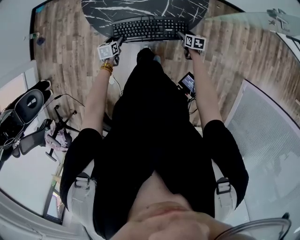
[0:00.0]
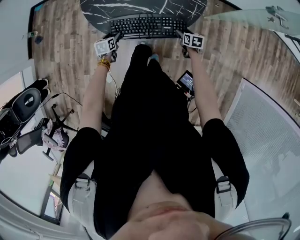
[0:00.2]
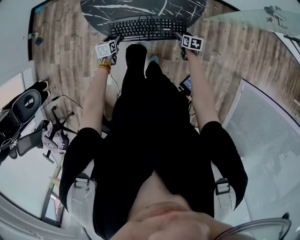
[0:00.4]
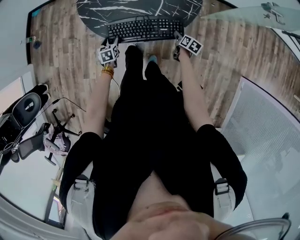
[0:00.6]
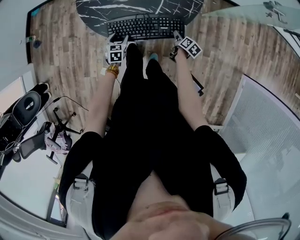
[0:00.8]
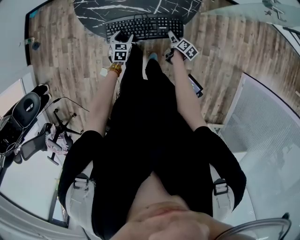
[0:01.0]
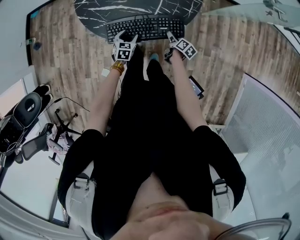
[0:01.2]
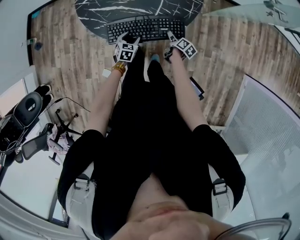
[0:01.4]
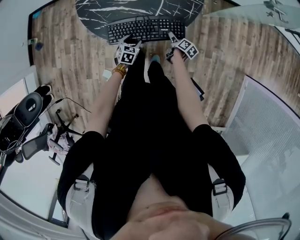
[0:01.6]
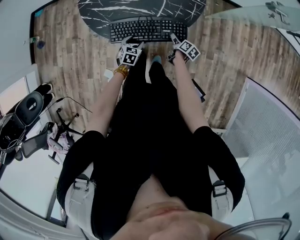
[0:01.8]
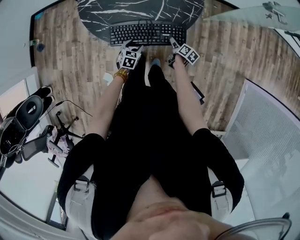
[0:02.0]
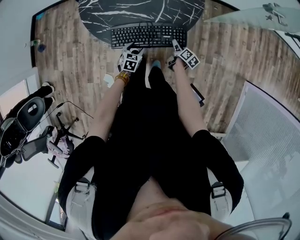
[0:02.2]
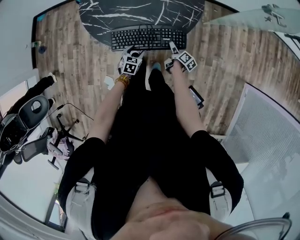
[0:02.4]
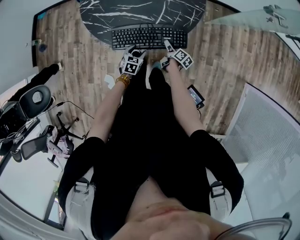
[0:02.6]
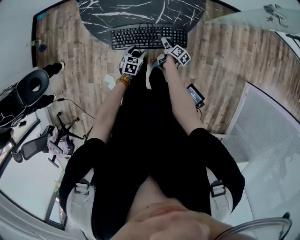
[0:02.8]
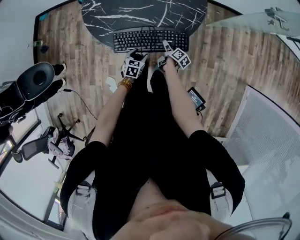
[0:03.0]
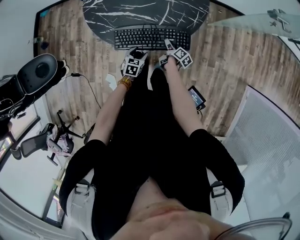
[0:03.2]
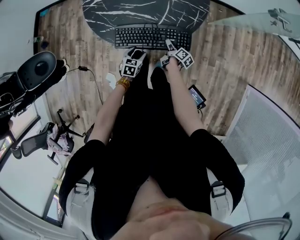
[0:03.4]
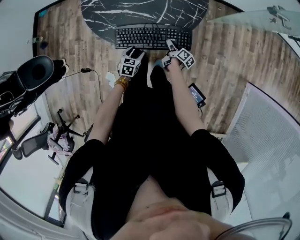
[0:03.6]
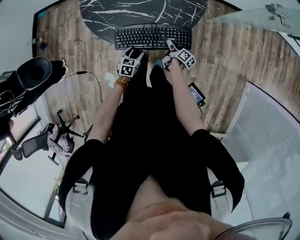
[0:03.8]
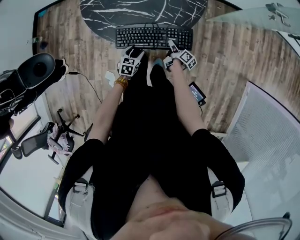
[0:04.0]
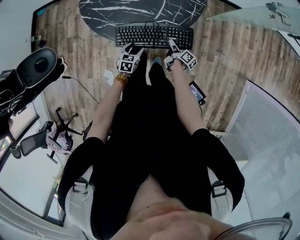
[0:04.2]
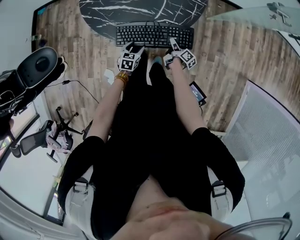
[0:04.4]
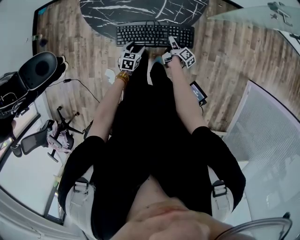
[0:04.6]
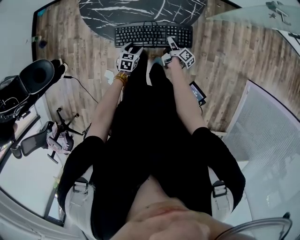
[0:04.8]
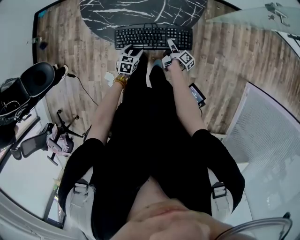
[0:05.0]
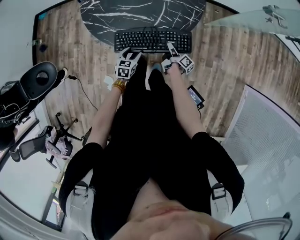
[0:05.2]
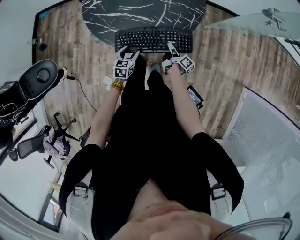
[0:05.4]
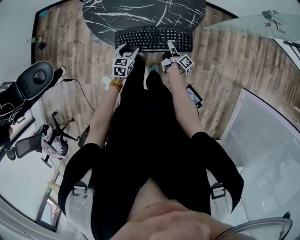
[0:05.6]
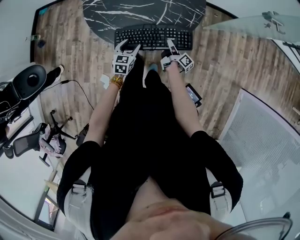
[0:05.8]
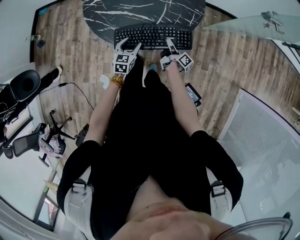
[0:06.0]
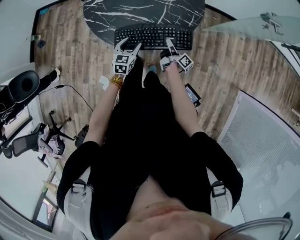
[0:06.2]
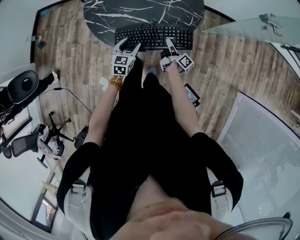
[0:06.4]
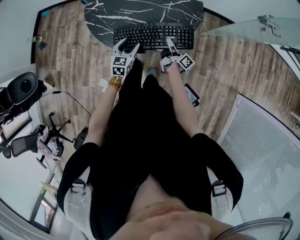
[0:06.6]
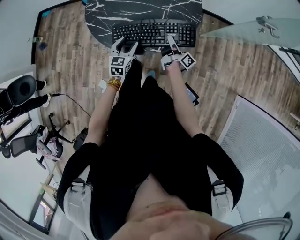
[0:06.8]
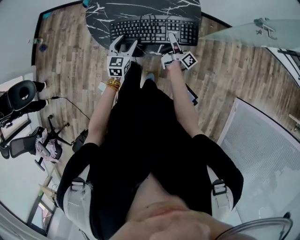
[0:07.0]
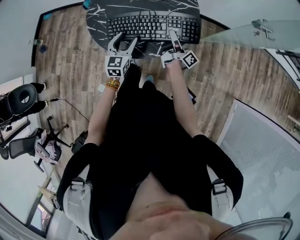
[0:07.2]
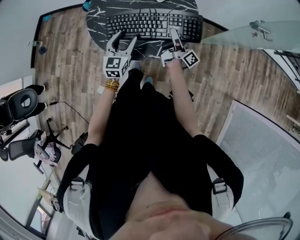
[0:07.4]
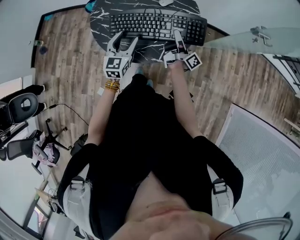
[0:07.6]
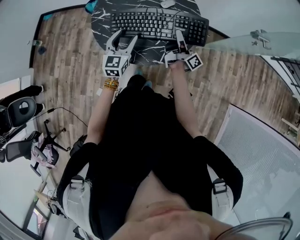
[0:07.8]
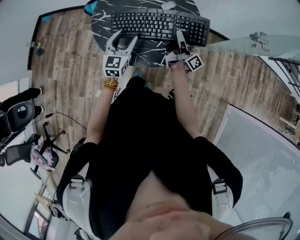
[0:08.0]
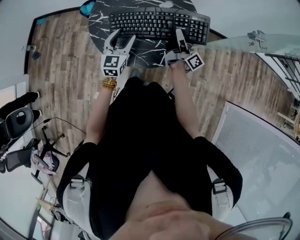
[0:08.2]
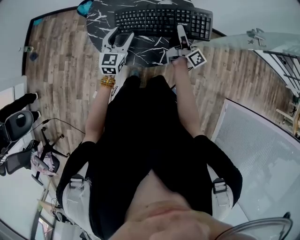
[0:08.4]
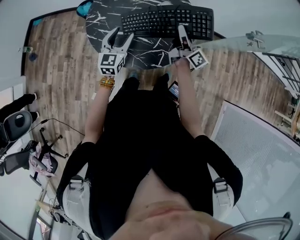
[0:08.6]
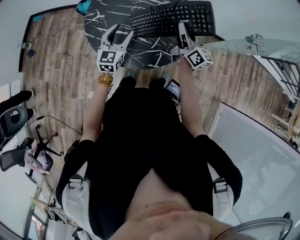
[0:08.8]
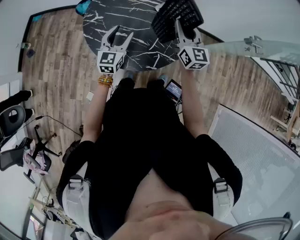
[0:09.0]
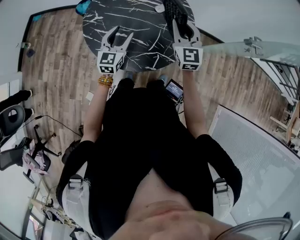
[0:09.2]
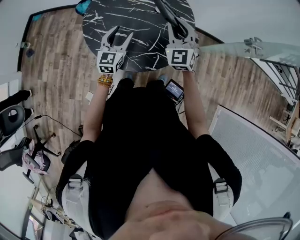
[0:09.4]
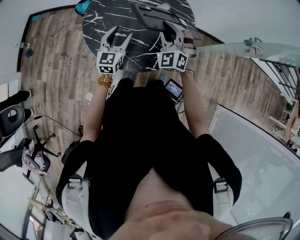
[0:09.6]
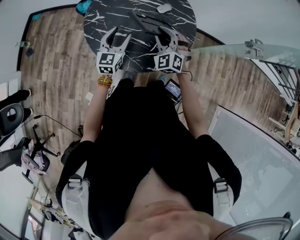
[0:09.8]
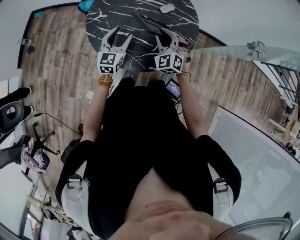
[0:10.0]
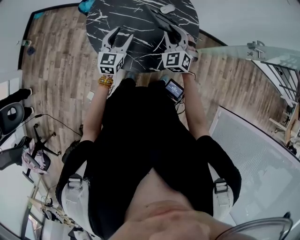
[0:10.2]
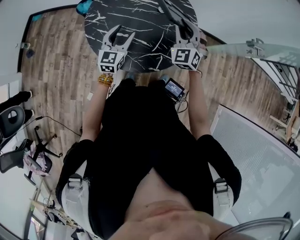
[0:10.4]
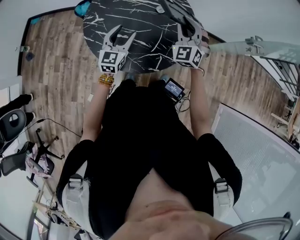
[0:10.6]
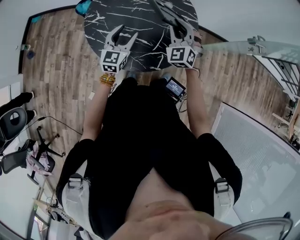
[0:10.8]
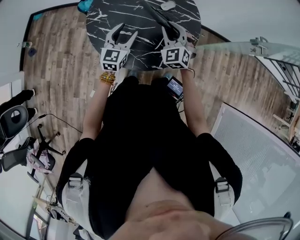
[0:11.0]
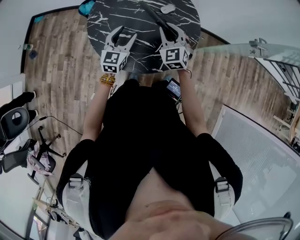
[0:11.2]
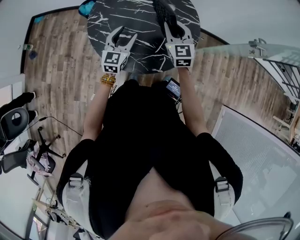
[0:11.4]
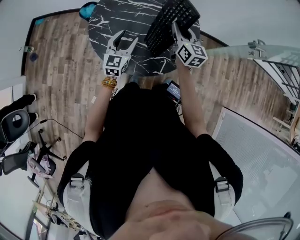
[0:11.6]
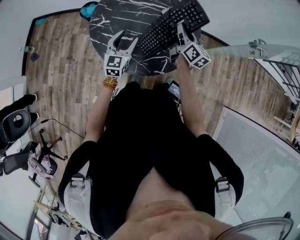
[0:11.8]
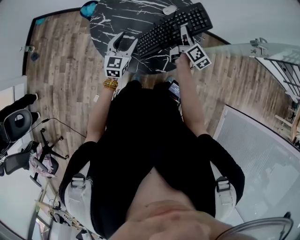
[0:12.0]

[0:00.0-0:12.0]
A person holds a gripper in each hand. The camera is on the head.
0:00.0 to 0:01.6: The left gripper heads to the right, covering about 15 cm, and rotates some 30 degrees. Meanwhile the right gripper goes some 5 cm backward, and rolls clockwise, seen from behind, by about 50 degrees.
0:01.6 to 0:03.0: The right gripper heads to the left, covering approximately 5 cm.
0:03.0 to 0:04.4: The right gripper closes its fingers.
0:04.4 to 0:06.0: Both grippers move upward, roughly 10 cm. The right gripper closes its fingers.
0:06.0 to 0:07.6: The right gripper is displaced upward and forward by about 25 cm, and rotates about 30 degrees, while the left gripper shifts approximately 20 cm upward, and turns by roughly 20 degrees.
0:07.6 to 0:09.0: The left gripper is displaced forward by approximately 5 cm. Meanwhile the right gripper travels upward and forward by some 15 cm, and rolls counterclockwise, seen from behind, by roughly 70 degrees.
0:09.0 to 0:10.4: The right gripper goes downward and returns, roughly 10 cm each way, and rotates around the line of its fingers by approximately 50 degrees, counterclockwise from behind.
0:10.4 to 0:12.0: The right gripper shifts roughly 5 cm downward, and twists about 100 degrees clockwise, seen from behind.

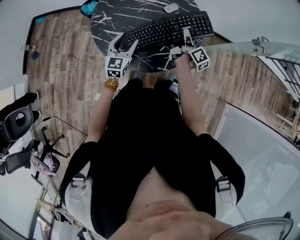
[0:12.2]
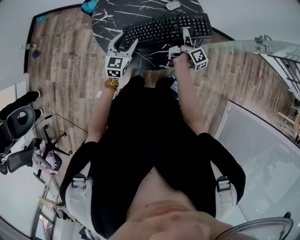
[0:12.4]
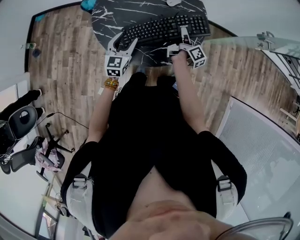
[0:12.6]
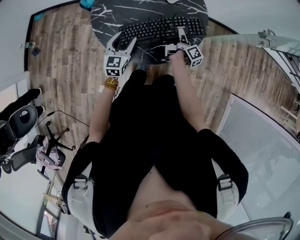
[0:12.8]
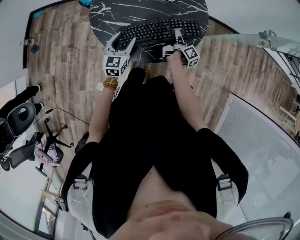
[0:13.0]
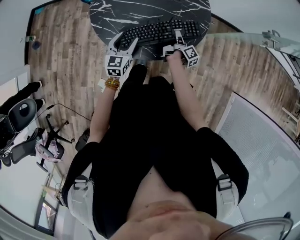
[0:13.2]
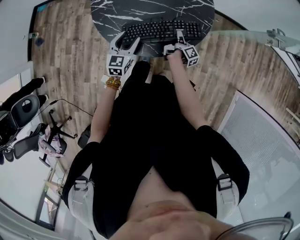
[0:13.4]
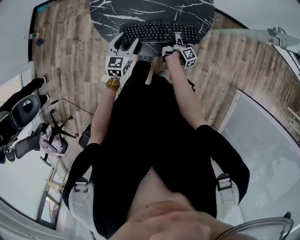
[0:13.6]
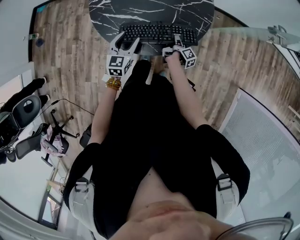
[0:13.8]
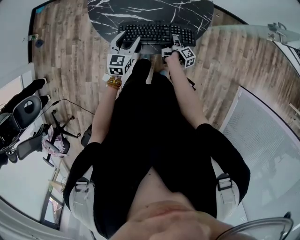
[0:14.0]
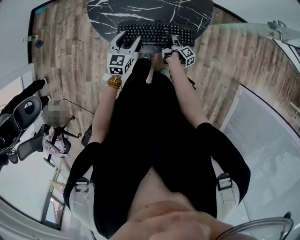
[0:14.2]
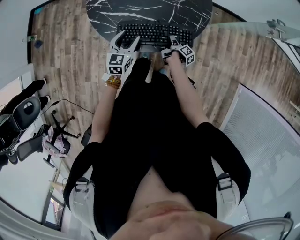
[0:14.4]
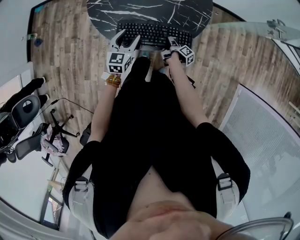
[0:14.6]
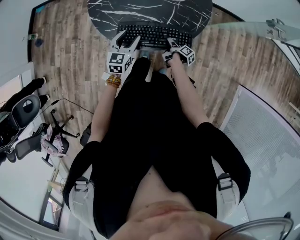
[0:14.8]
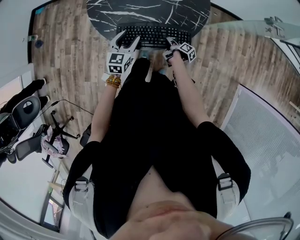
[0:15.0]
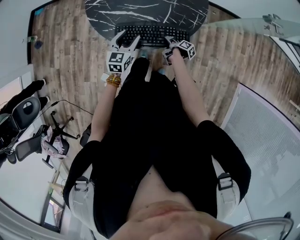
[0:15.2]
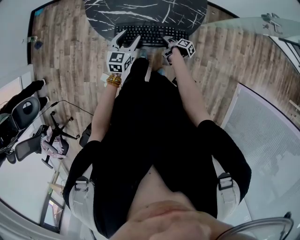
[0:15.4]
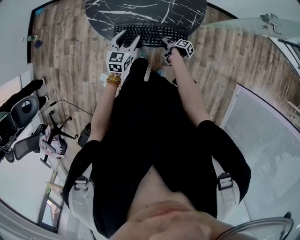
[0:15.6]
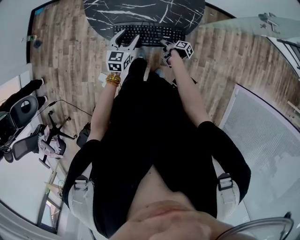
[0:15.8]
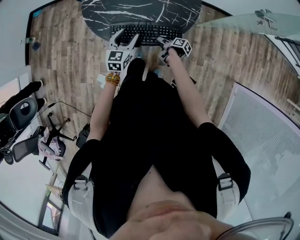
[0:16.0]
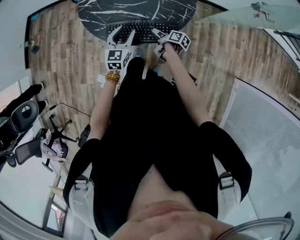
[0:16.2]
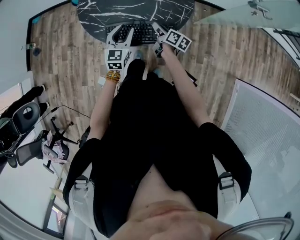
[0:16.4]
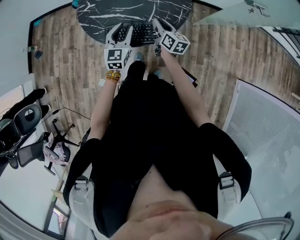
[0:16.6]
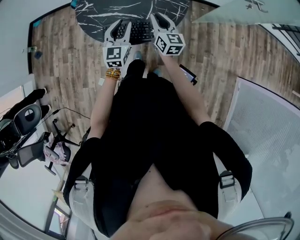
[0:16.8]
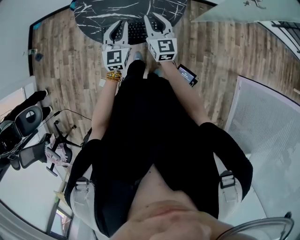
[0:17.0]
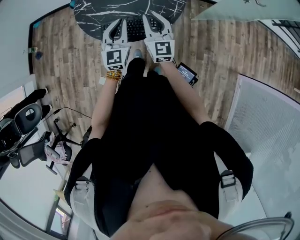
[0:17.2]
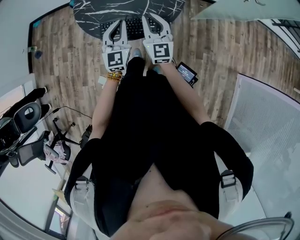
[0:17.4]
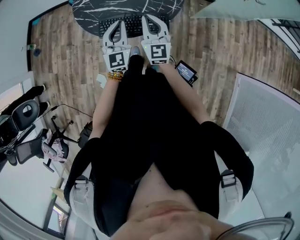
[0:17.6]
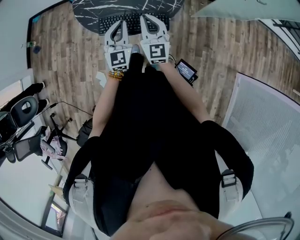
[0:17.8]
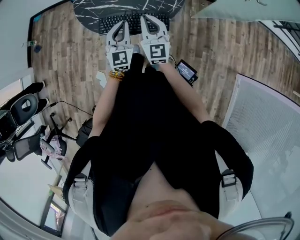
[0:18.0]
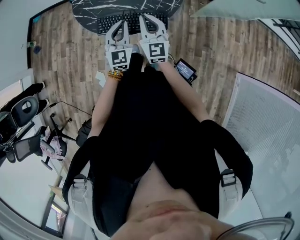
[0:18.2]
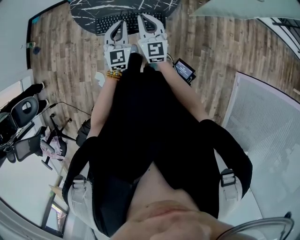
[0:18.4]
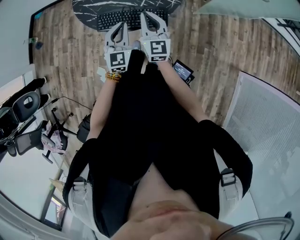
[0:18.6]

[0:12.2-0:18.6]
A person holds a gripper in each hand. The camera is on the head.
0:12.2 to 0:13.8: The right gripper goes some 25 cm downward and backward, and changes its angle by roughly 30 degrees; the left gripper shifts approximately 5 cm downward and backward.
0:13.8 to 0:15.4: The right gripper travels backward and downward by some 10 cm, turns by roughly 30 degrees, and opens up.
0:15.4 to 0:17.0: The right gripper heads upward, covering about 35 cm, rolls counterclockwise, seen from behind, by some 90 degrees, and closes up; the left gripper travels upward and to the right by about 15 cm, changes its angle by some 20 degrees, and closes up.
0:17.0 to 0:18.6: The left gripper moves approximately 5 cm.

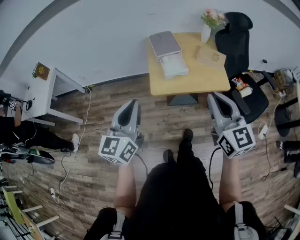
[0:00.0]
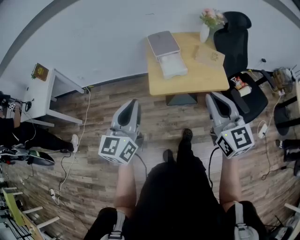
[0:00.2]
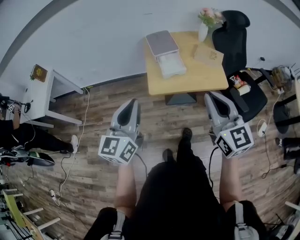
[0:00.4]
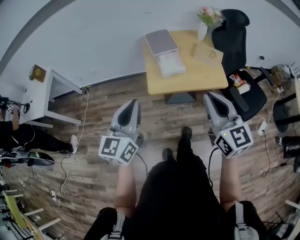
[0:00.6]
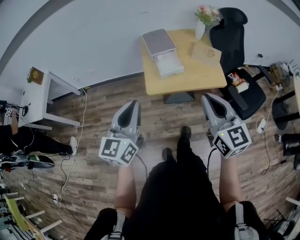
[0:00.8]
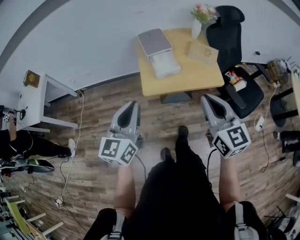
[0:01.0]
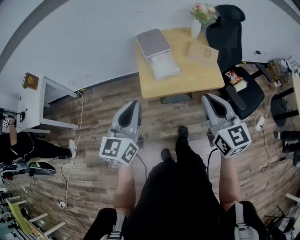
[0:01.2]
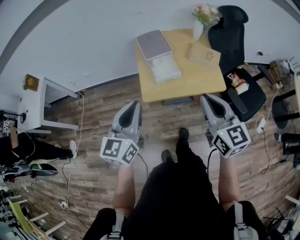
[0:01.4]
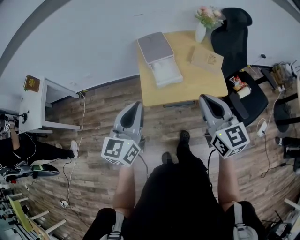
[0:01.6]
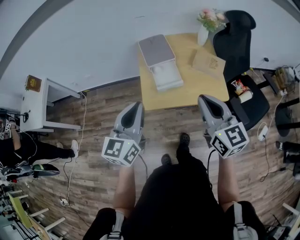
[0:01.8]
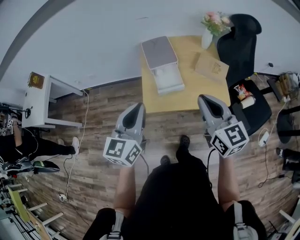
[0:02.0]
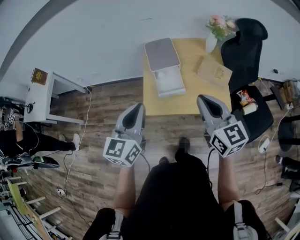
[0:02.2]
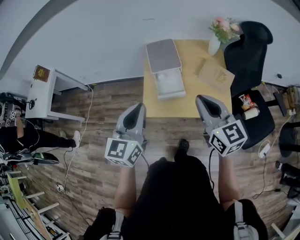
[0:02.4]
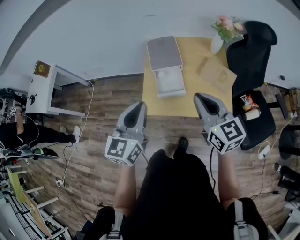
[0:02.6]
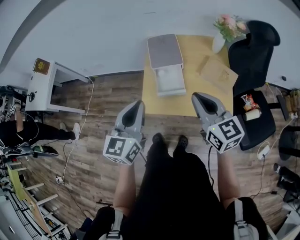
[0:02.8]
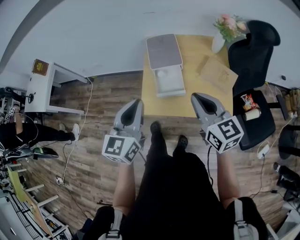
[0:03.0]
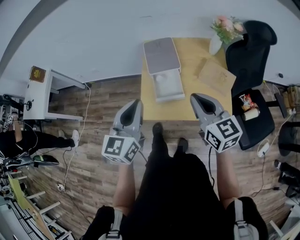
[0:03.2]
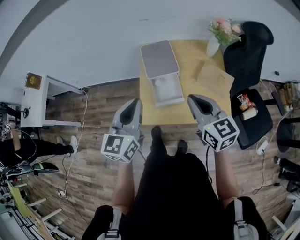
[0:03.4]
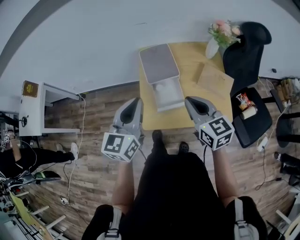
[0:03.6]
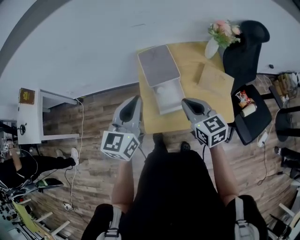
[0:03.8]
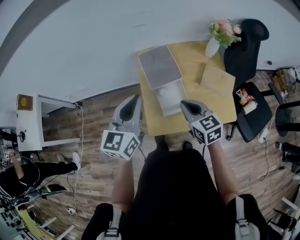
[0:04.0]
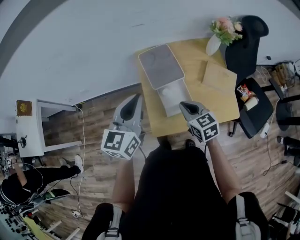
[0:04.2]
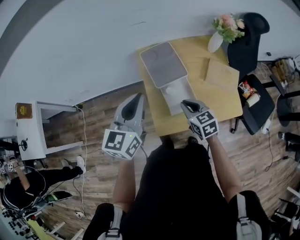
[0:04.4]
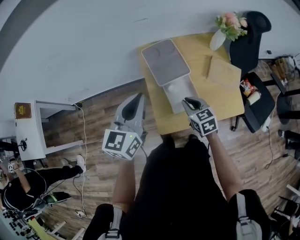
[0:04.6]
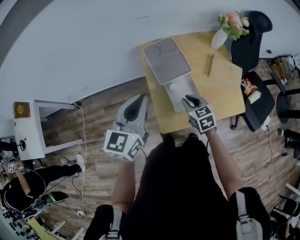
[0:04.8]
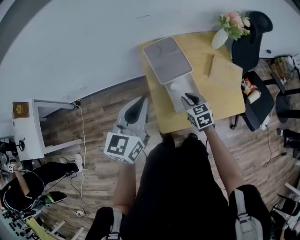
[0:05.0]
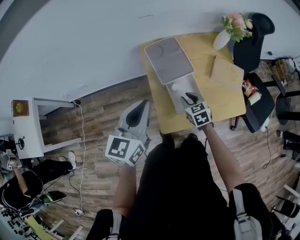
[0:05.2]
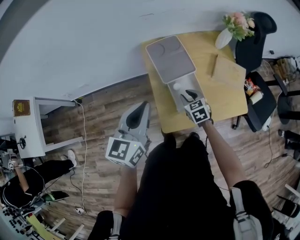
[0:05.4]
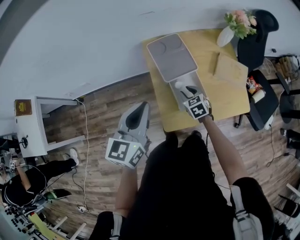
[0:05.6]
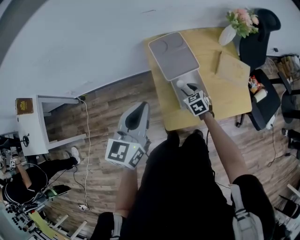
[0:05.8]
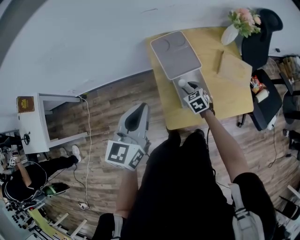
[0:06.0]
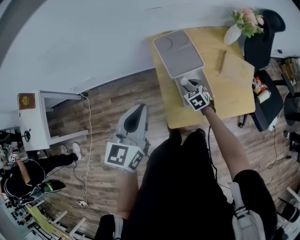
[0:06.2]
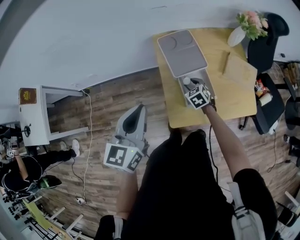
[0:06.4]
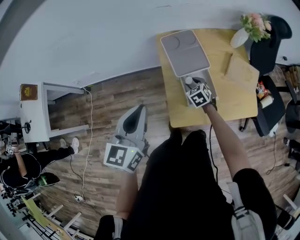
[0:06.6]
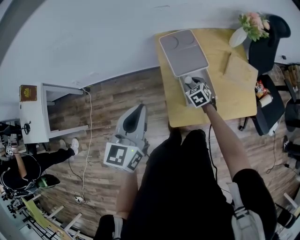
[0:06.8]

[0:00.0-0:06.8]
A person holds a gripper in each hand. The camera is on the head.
0:00.0 to 0:01.4: Both grippers move forward, about 10 cm.
0:01.4 to 0:02.8: The right gripper heads forward, covering approximately 20 cm, while the left gripper is displaced forward and to the right by about 15 cm.
0:02.8 to 0:04.0: The left gripper heads forward, covering roughly 20 cm; the right gripper heads forward, downward and to the left, covering about 20 cm.
0:04.0 to 0:05.4: The right gripper goes some 20 cm downward, swivels roughly 20 degrees, and opens up, while the left gripper shifts approximately 5 cm to the left.
0:05.4 to 0:06.8: The left gripper changes place by some 5 cm. Meanwhile the right gripper shifts by roughly 5 cm.
